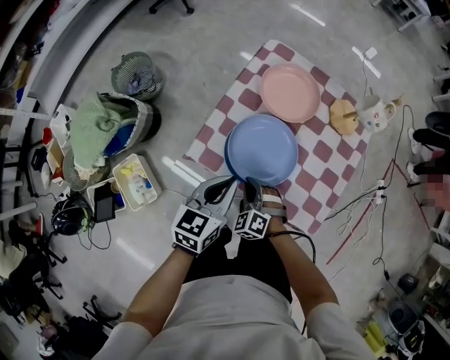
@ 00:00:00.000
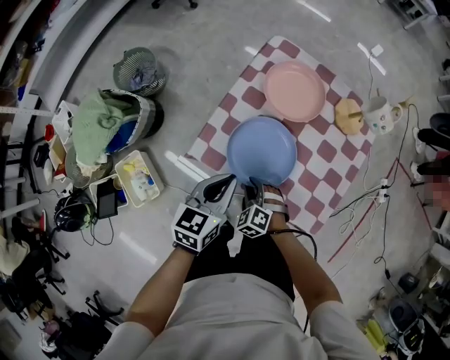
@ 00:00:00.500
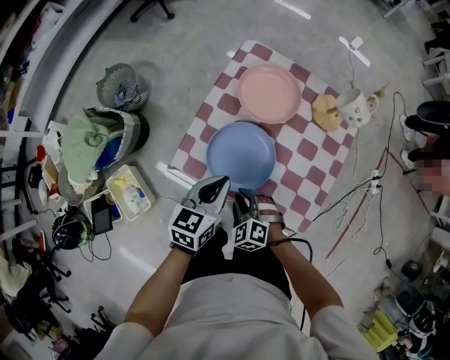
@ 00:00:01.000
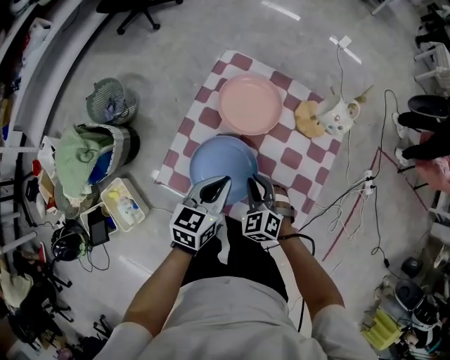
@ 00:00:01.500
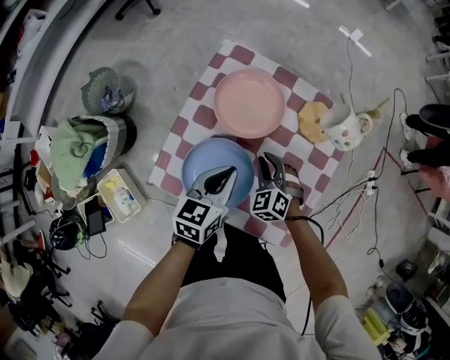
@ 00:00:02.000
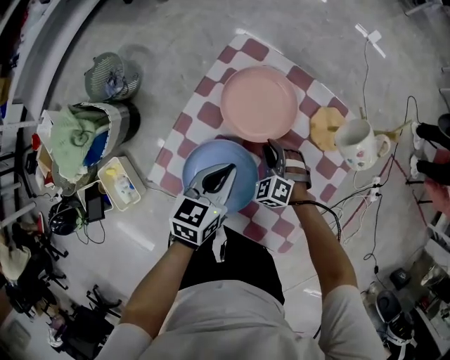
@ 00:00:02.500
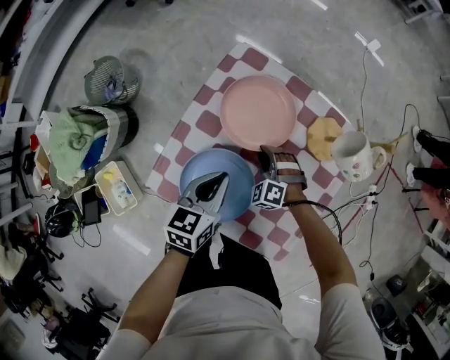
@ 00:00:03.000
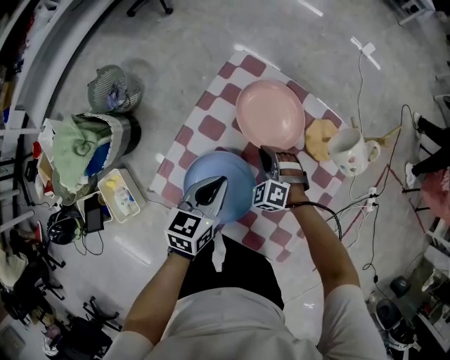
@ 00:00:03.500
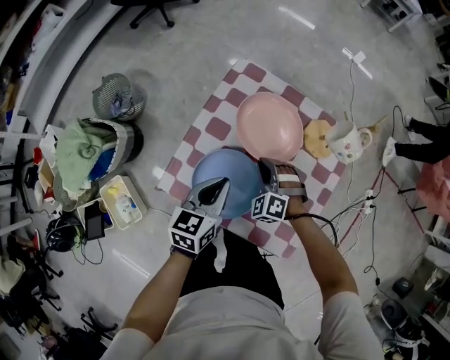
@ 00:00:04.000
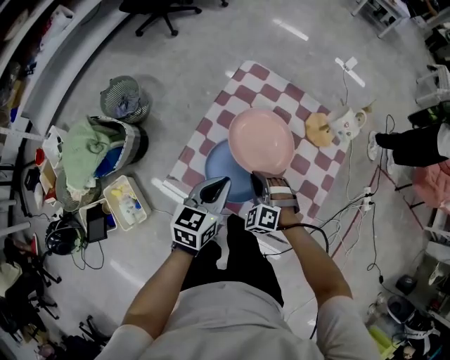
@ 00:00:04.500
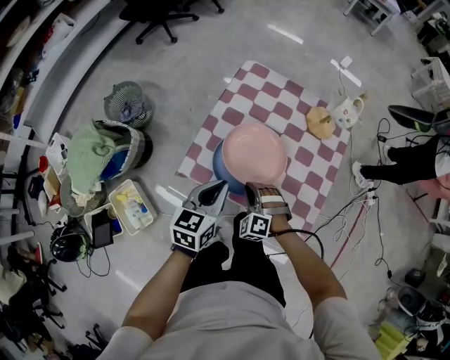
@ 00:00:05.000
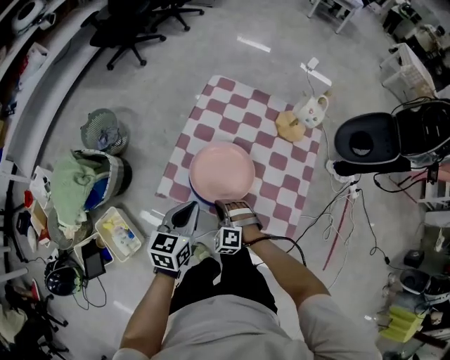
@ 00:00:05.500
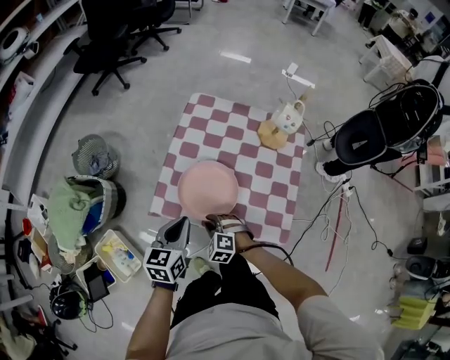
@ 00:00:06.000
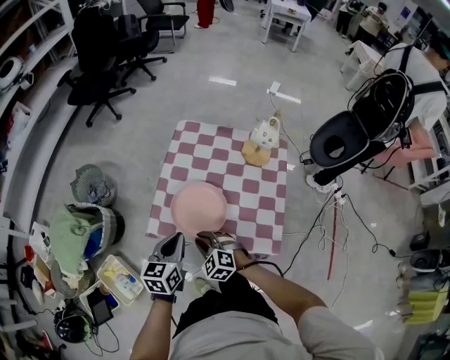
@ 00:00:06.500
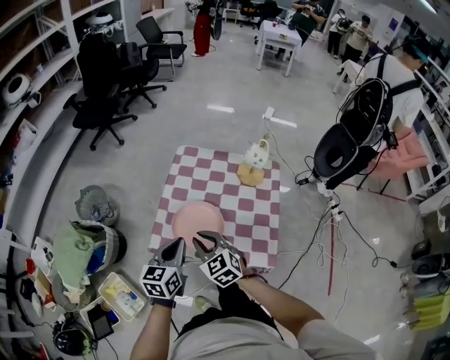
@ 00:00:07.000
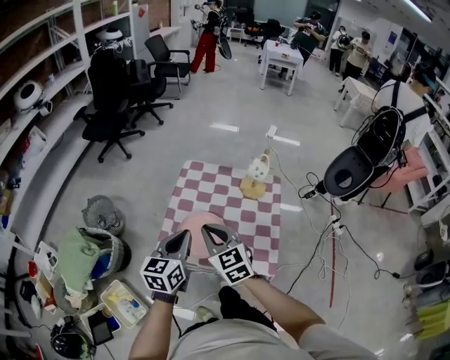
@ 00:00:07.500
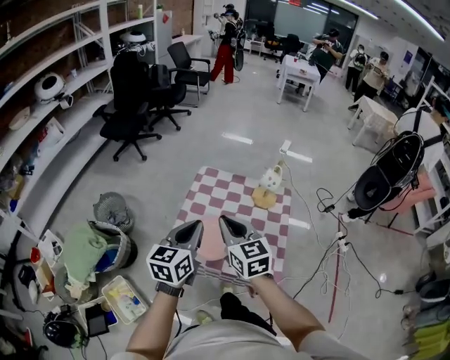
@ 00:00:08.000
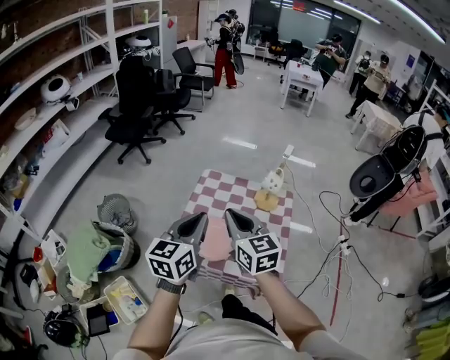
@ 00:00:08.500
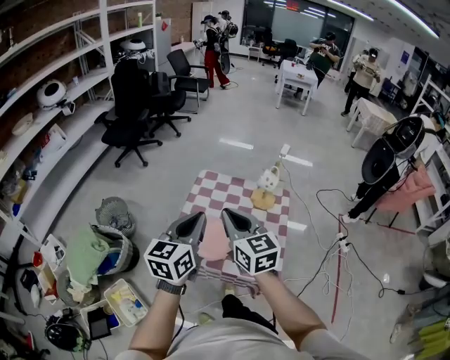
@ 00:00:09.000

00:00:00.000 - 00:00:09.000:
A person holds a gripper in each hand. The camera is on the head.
00:00:00.000 - 00:00:02.000: The grippers both shift forward and to the right by roughly 20 cm.
00:00:02.000 - 00:00:04.500: The grippers both shift backward and to the left by some 15 cm. The right gripper changes its angle by about 20 degrees.
00:00:04.500 - 00:00:07.000: The right gripper is displaced upward and backward by some 20 cm, and rotates around the line of its fingers by some 50 degrees, clockwise from behind. Meanwhile the left gripper moves upward and backward, approximately 10 cm.
00:00:07.000 - 00:00:09.000: The two grippers go about 20 cm upward. The right gripper rotates some 30 degrees.

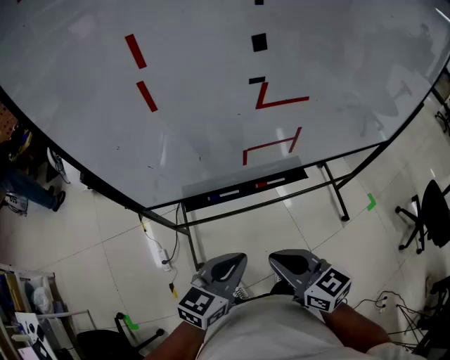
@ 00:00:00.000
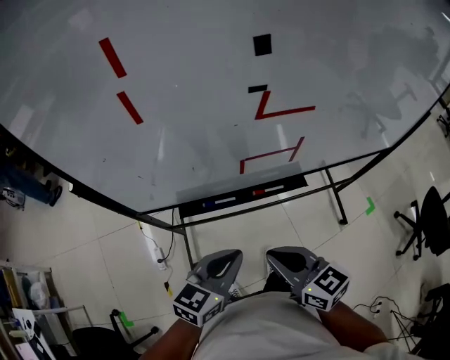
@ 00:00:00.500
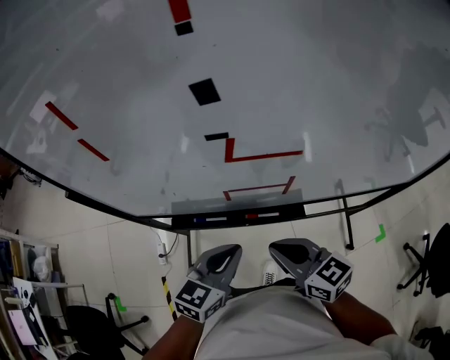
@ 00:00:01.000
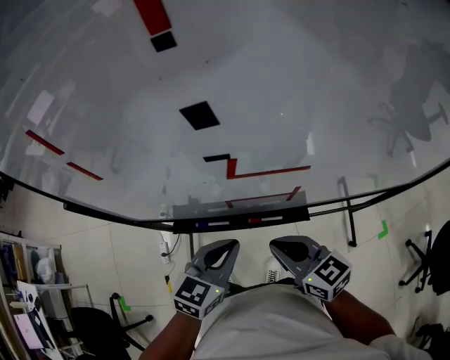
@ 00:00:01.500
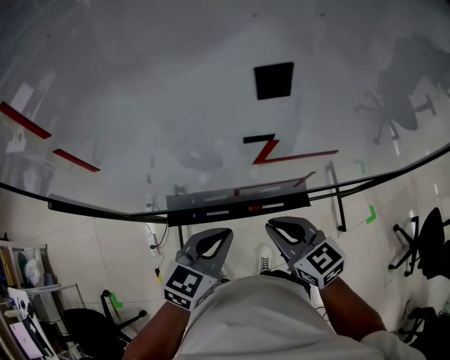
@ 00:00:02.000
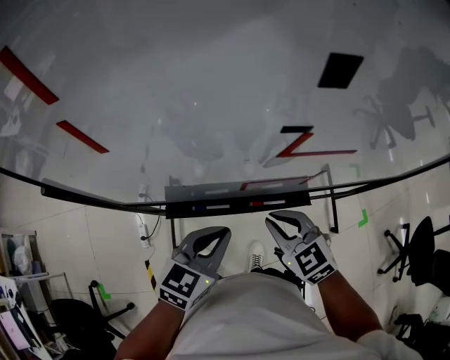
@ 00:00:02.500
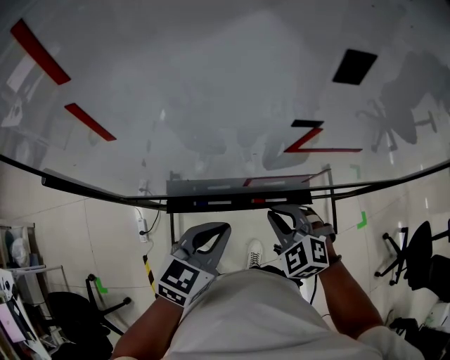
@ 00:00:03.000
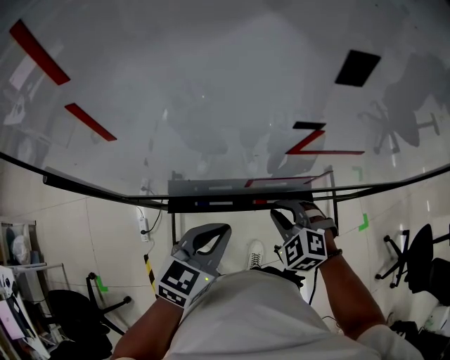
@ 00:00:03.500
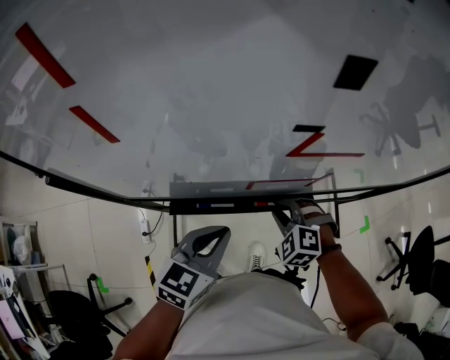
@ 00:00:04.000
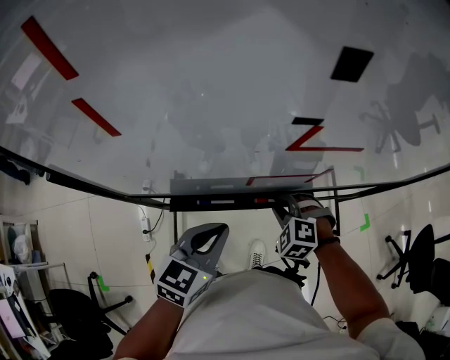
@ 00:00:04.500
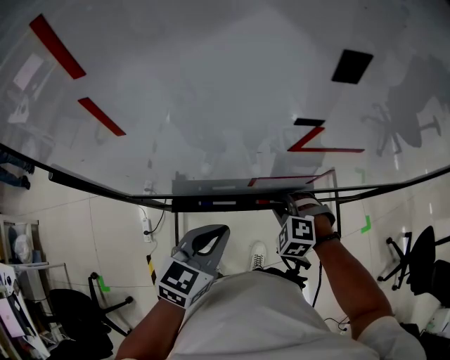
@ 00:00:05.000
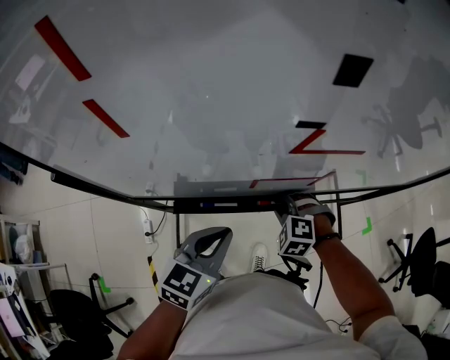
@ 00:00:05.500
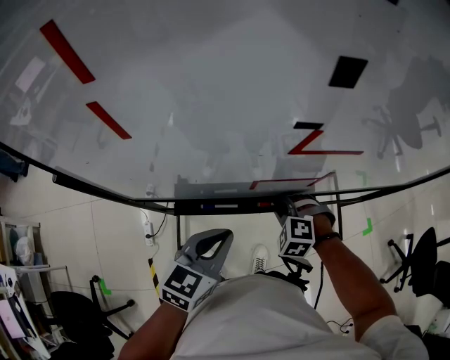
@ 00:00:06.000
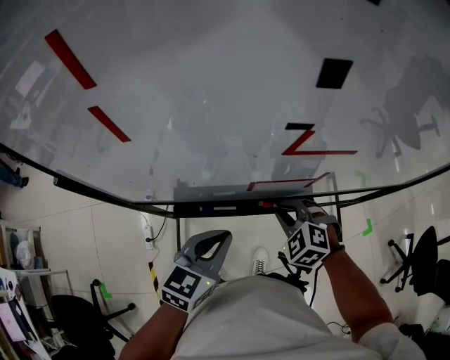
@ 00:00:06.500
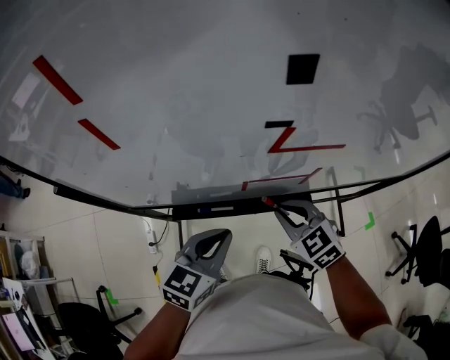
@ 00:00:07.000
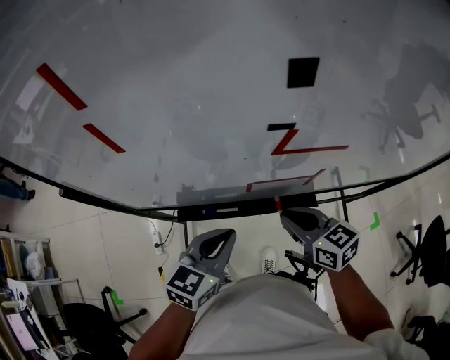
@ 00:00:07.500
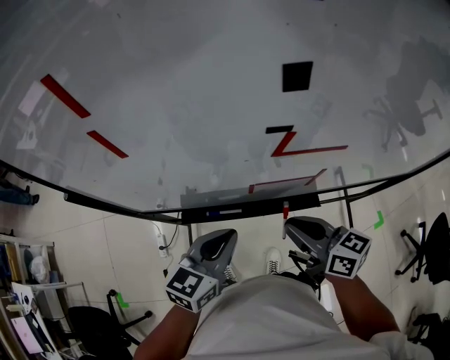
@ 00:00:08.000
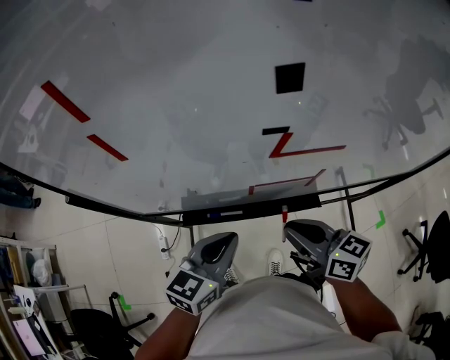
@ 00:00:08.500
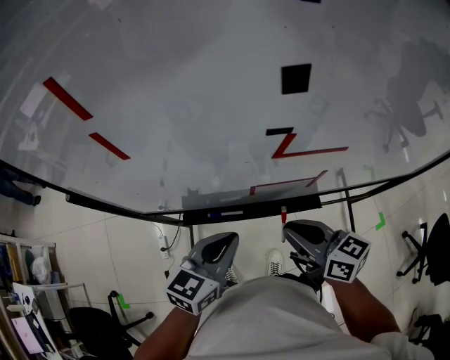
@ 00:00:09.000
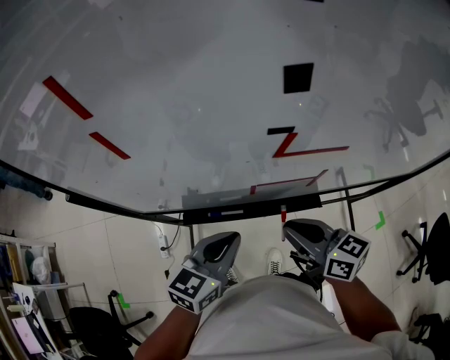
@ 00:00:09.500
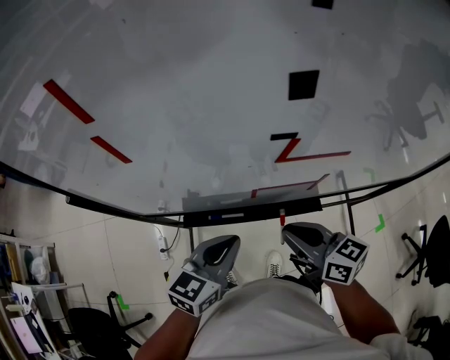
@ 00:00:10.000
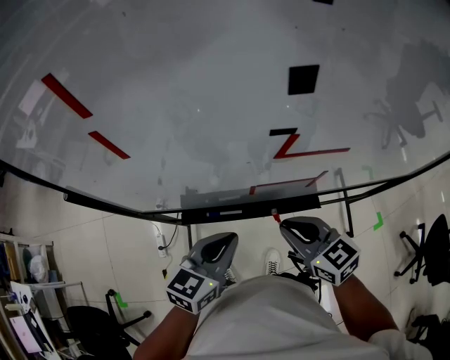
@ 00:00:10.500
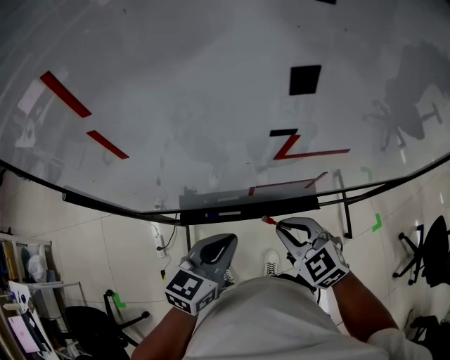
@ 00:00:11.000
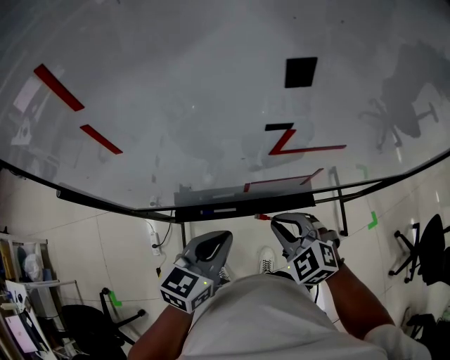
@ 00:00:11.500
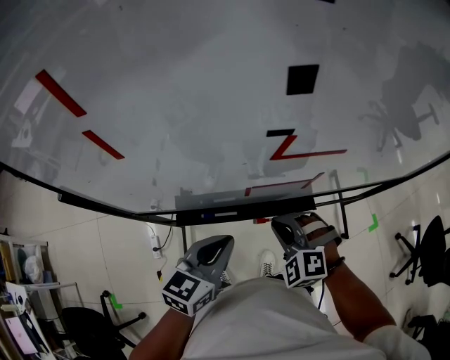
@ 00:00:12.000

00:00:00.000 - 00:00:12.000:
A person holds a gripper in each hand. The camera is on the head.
00:00:00.000 - 00:00:02.000: The two grippers go about 20 cm forward.
00:00:02.000 - 00:00:04.000: The right gripper travels downward by approximately 10 cm, and rotates around the line of its fingers by some 50 degrees, counterclockwise from behind.
00:00:04.000 - 00:00:06.000: There are only small adjustments of the grippers.
00:00:06.000 - 00:00:08.000: The right gripper heads upward, covering approximately 15 cm, and rolls clockwise, seen from behind, by about 80 degrees.
00:00:08.000 - 00:00:10.000: Both grippers stay put.
00:00:10.000 - 00:00:12.000: The right gripper goes some 10 cm downward, and rotates around the line of its fingers by roughly 70 degrees, counterclockwise from behind.

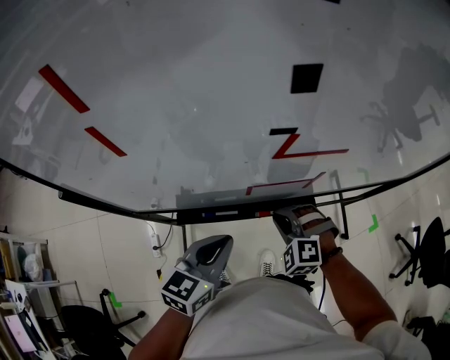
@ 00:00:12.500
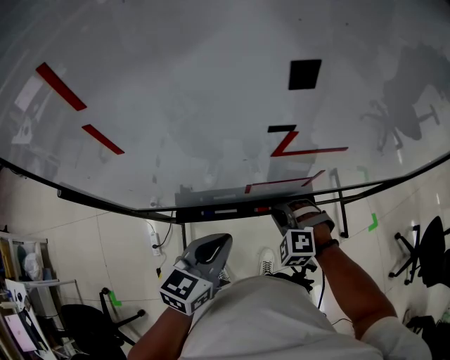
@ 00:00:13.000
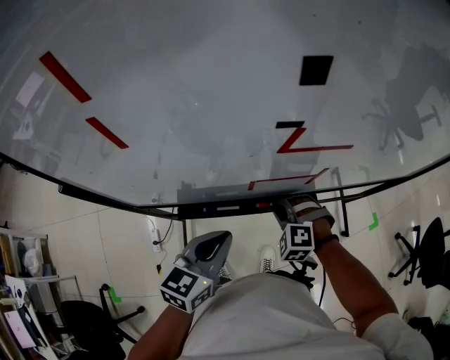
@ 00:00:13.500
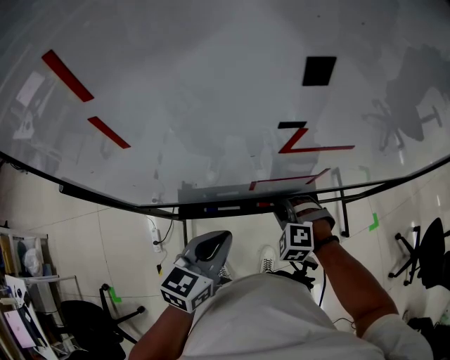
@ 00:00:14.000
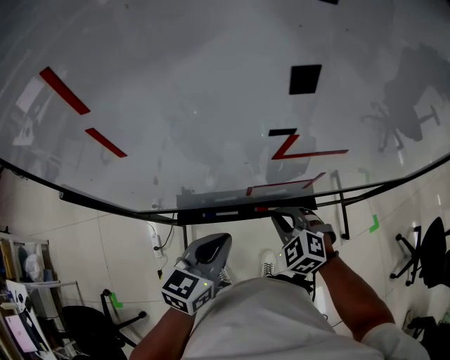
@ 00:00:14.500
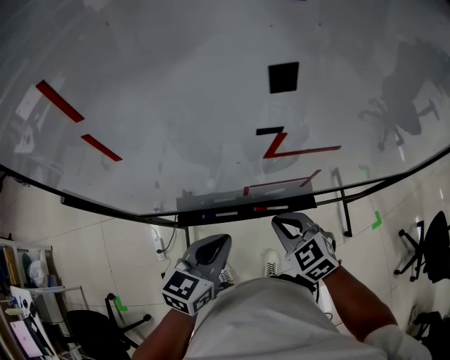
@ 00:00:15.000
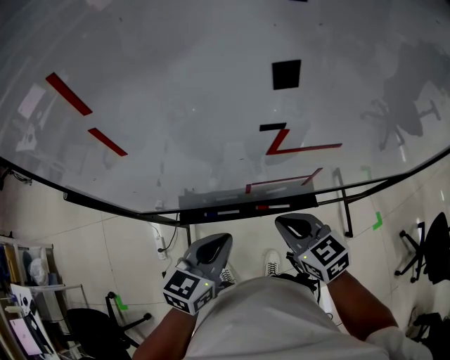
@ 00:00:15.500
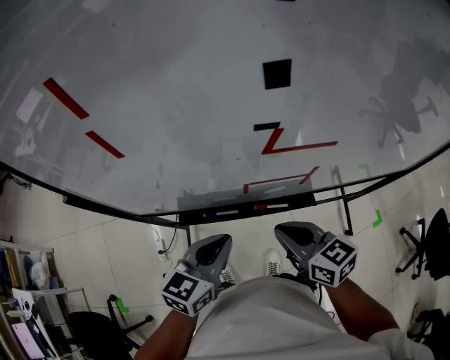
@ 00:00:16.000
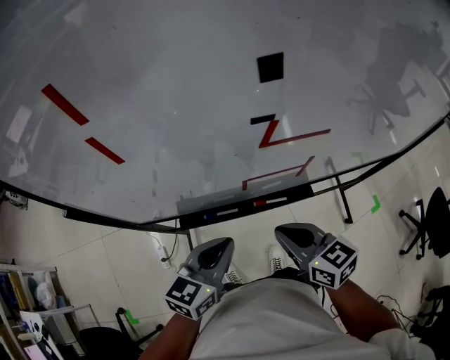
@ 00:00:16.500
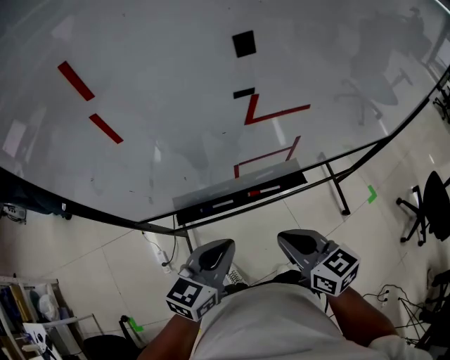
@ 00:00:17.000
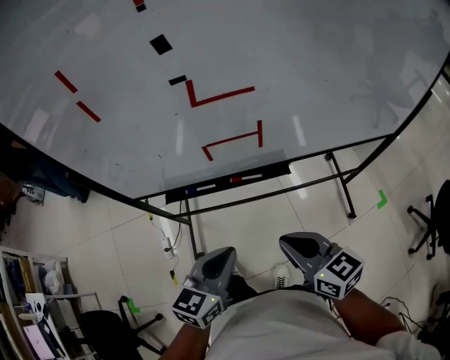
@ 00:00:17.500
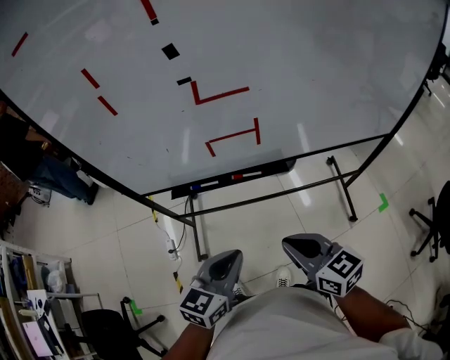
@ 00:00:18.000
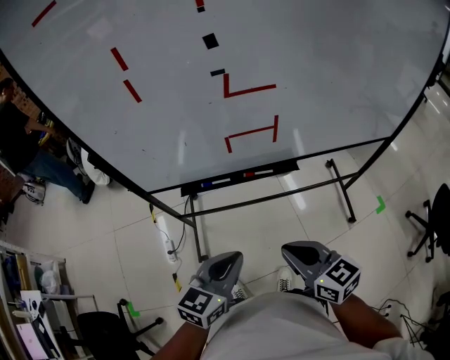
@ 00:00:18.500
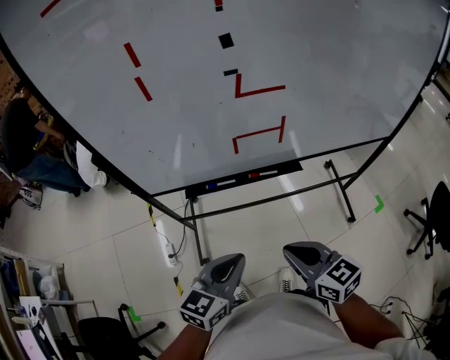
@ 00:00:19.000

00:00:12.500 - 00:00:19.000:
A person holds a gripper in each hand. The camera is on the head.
00:00:12.500 - 00:00:14.500: The right gripper swivels about 20 degrees.
00:00:14.500 - 00:00:17.000: The right gripper shifts about 15 cm backward and upward, and twists roughly 50 degrees clockwise, seen from behind; the left gripper travels backward by some 5 cm.
00:00:17.000 - 00:00:19.000: Both grippers travel together backward, about 15 cm.
